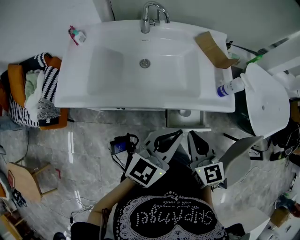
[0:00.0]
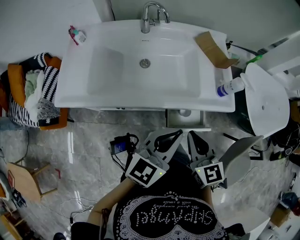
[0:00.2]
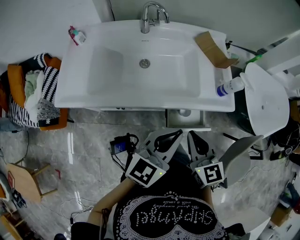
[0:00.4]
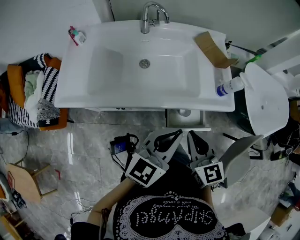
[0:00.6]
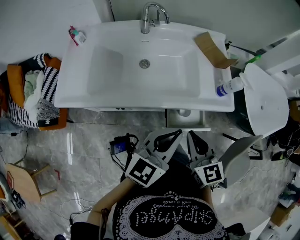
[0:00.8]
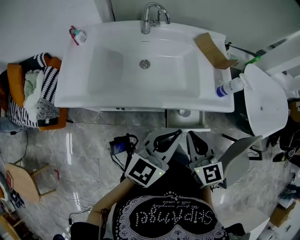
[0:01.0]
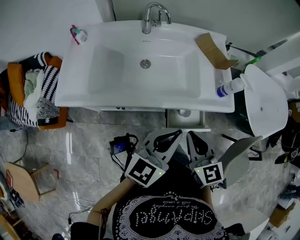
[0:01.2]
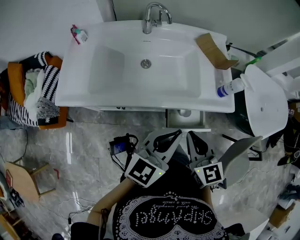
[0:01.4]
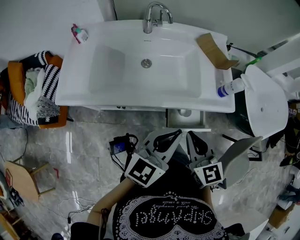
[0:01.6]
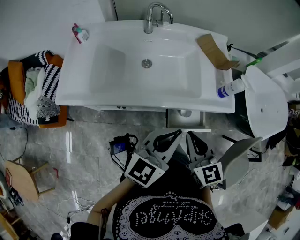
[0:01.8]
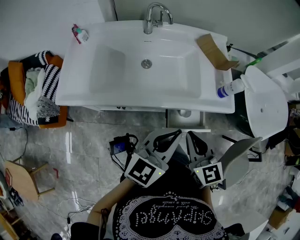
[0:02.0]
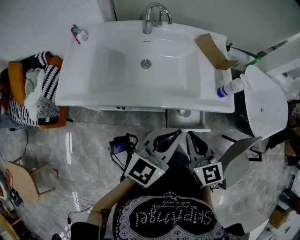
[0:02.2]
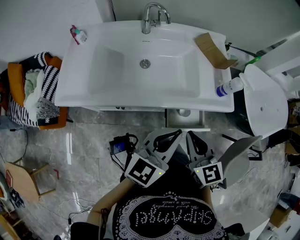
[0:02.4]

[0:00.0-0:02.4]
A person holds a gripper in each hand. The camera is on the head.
0.0 to 1.2 s: Both grippers stay about where they are.
1.2 to 2.4 s: Neither gripper changes place.

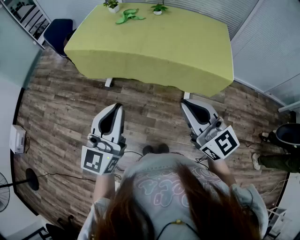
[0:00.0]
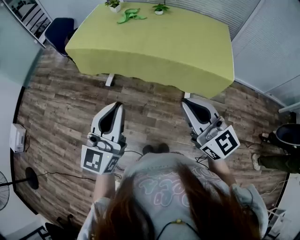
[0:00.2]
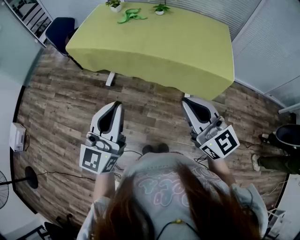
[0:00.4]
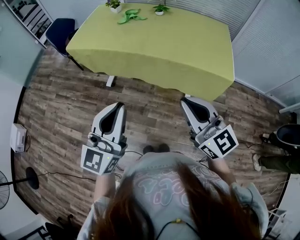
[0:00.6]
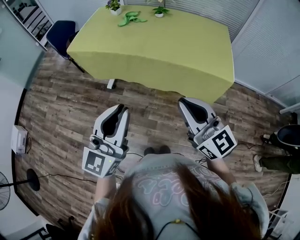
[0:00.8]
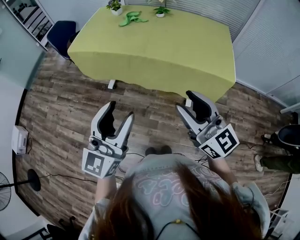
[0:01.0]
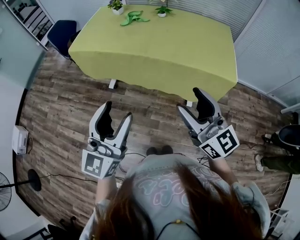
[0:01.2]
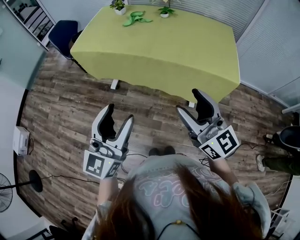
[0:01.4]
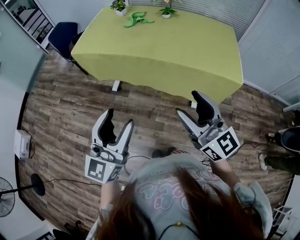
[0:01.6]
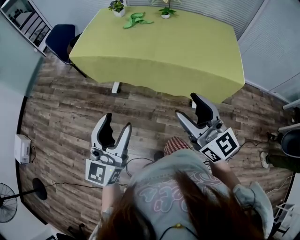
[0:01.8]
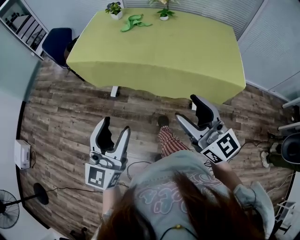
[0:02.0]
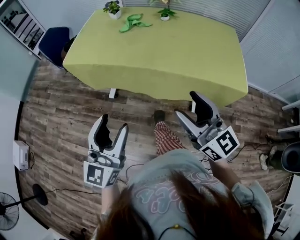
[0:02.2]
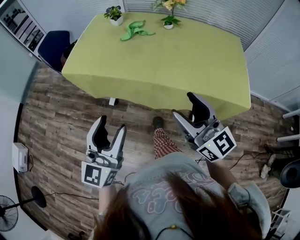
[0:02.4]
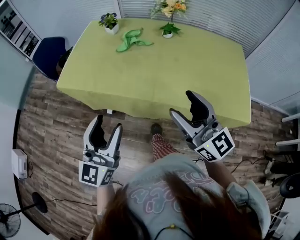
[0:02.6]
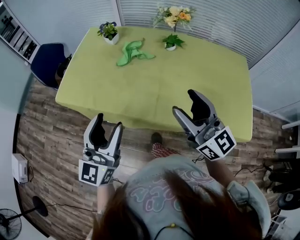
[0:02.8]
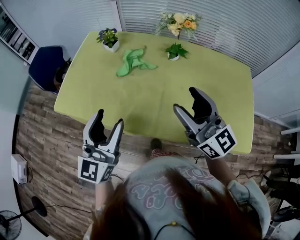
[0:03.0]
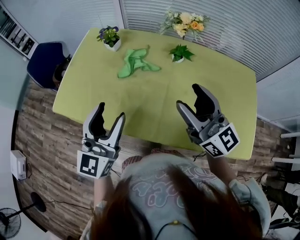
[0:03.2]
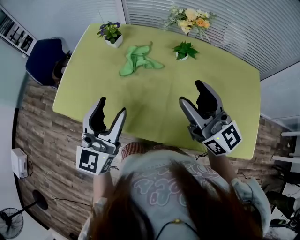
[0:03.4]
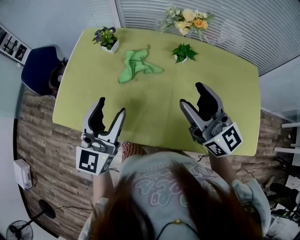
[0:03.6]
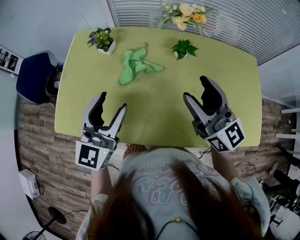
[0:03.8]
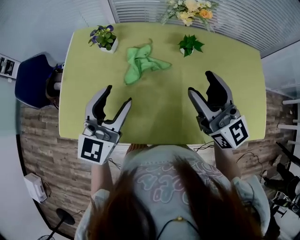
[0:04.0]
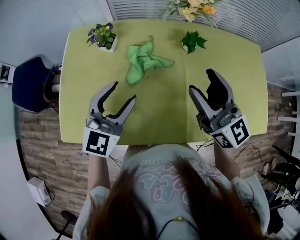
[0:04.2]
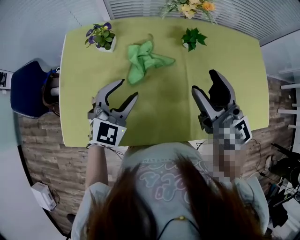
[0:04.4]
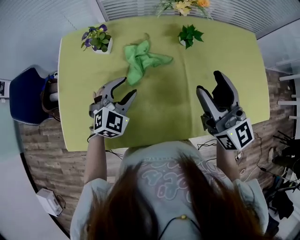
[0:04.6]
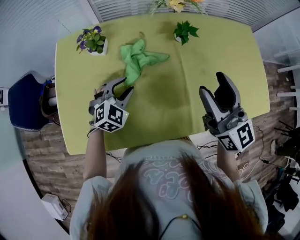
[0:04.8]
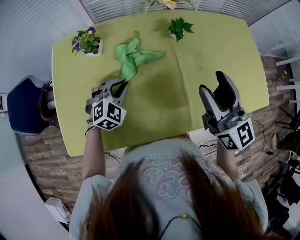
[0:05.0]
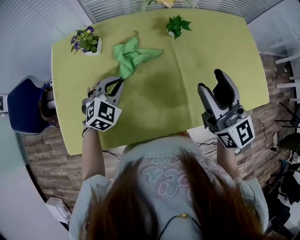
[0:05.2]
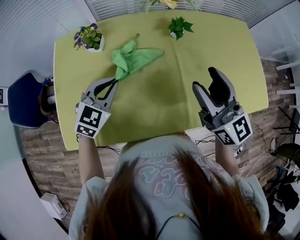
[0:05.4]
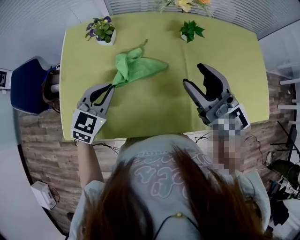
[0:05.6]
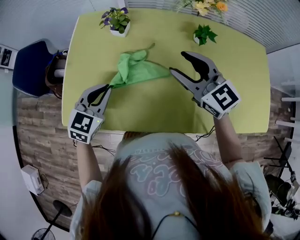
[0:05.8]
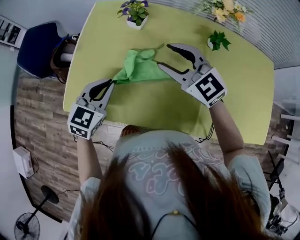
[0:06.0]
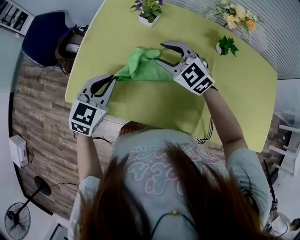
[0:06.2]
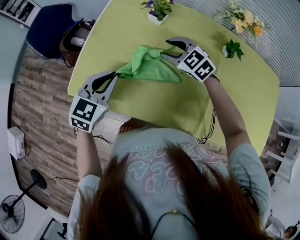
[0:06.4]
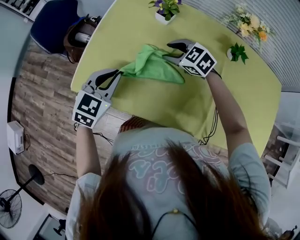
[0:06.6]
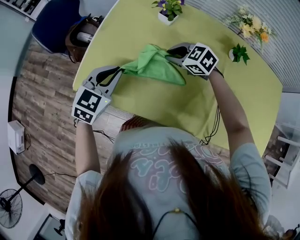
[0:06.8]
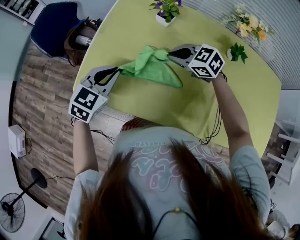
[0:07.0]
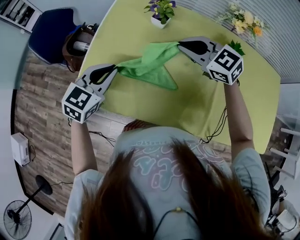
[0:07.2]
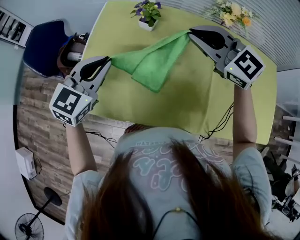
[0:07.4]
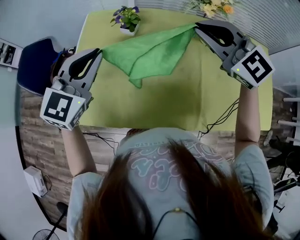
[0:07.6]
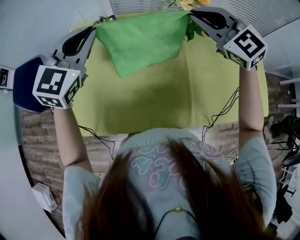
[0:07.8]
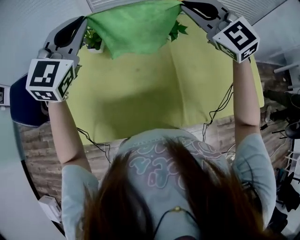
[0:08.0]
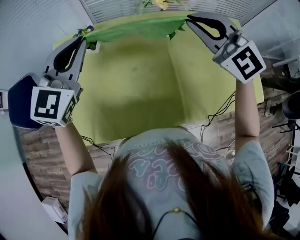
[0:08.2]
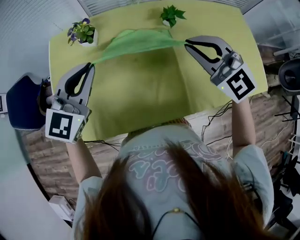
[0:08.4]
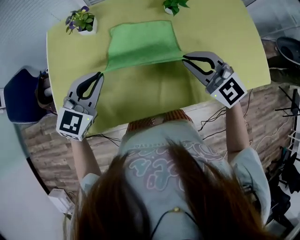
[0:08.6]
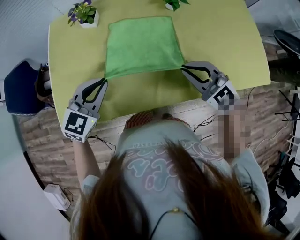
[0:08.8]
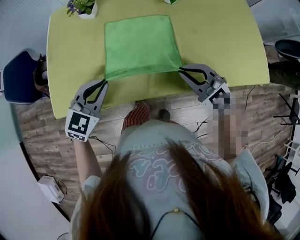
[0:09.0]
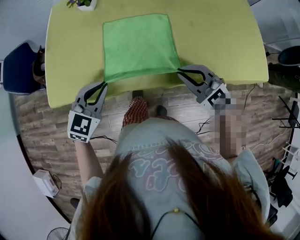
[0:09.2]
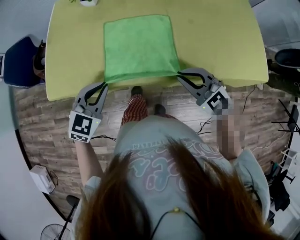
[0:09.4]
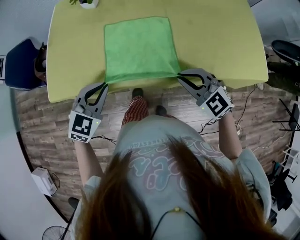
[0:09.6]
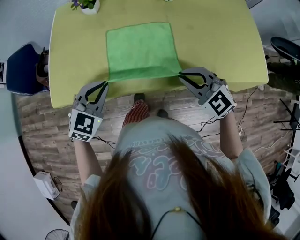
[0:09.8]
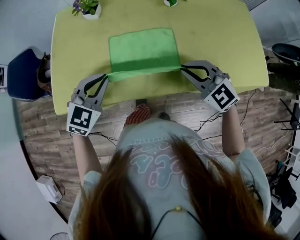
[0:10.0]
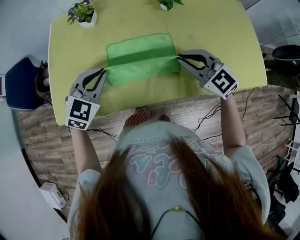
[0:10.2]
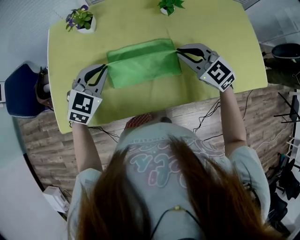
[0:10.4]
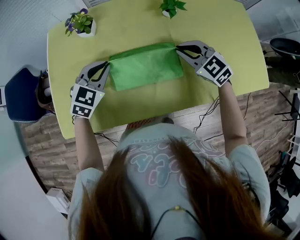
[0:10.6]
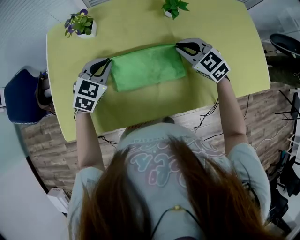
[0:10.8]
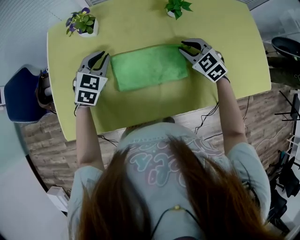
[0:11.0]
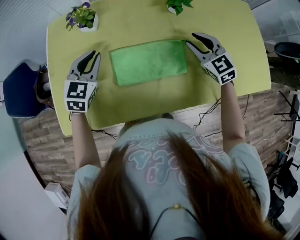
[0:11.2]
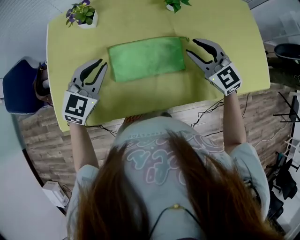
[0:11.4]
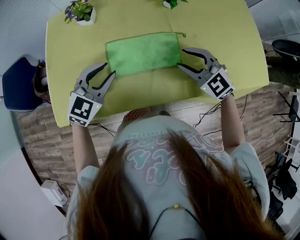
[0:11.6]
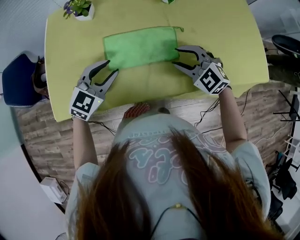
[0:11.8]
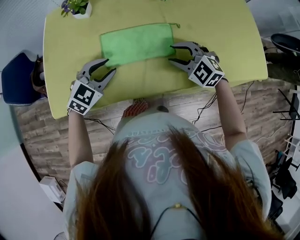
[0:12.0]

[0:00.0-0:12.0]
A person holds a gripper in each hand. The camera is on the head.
0.0 to 1.6 s: Both grippers travel together to the left, approximately 5 cm. The right gripper opens its fingers. The left gripper opens up.
1.6 to 3.0 s: The two grippers travel together, forward, approximately 40 cm.
3.0 to 4.4 s: The right gripper goes about 15 cm forward and to the left, and rotates roughly 20 degrees; the left gripper goes about 25 cm forward and downward, and rotates approximately 50 degrees.
4.4 to 6.0 s: The right gripper shifts by approximately 20 cm, and rotates approximately 50 degrees. Meanwhile the left gripper travels downward and back again, roughly 10 cm each way, changes its angle by about 30 degrees, and closes.
6.0 to 7.6 s: The left gripper shifts some 15 cm upward and forward. Meanwhile the right gripper moves upward and to the right, about 15 cm, and closes.
7.6 to 9.0 s: The right gripper travels backward, downward and to the right by some 30 cm. The left gripper is displaced downward, backward and to the right by about 25 cm, and changes its angle by roughly 20 degrees.
9.0 to 10.4 s: The grippers both shift forward by some 10 cm.
10.4 to 12.0 s: The right gripper is displaced downward and backward by about 10 cm, and opens up; the left gripper heads backward and downward, covering about 10 cm, and opens its fingers.

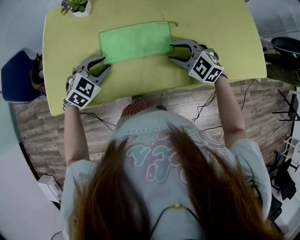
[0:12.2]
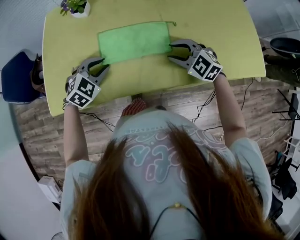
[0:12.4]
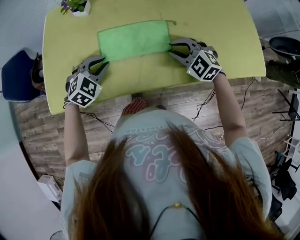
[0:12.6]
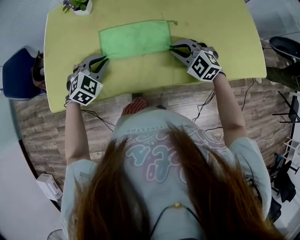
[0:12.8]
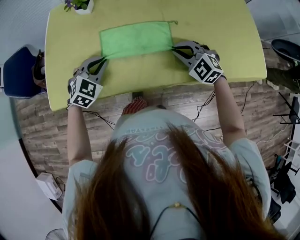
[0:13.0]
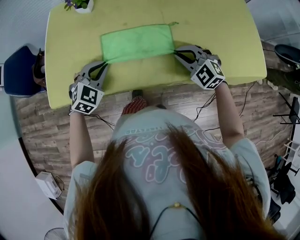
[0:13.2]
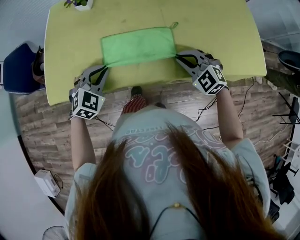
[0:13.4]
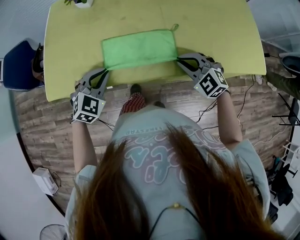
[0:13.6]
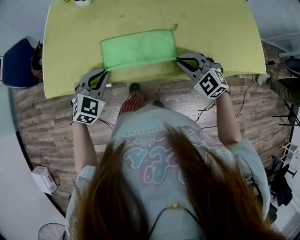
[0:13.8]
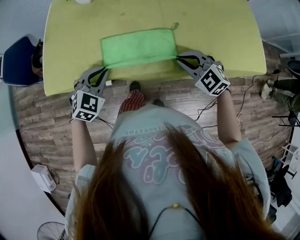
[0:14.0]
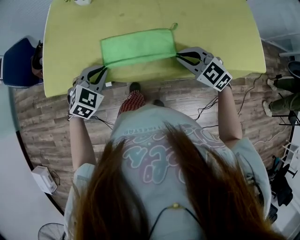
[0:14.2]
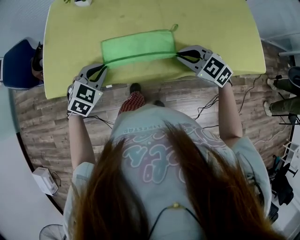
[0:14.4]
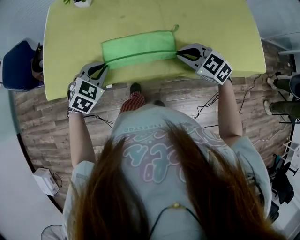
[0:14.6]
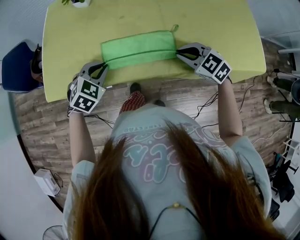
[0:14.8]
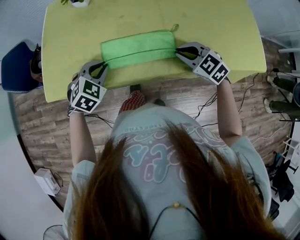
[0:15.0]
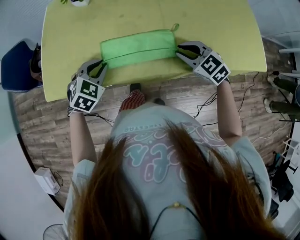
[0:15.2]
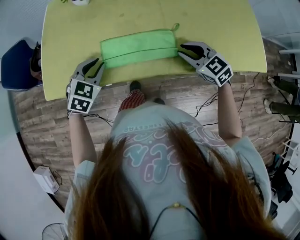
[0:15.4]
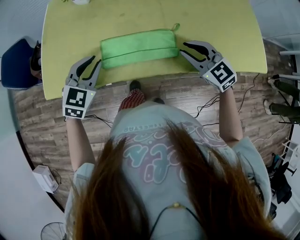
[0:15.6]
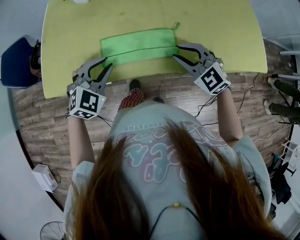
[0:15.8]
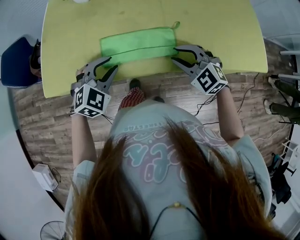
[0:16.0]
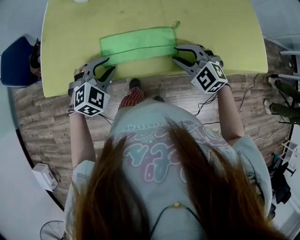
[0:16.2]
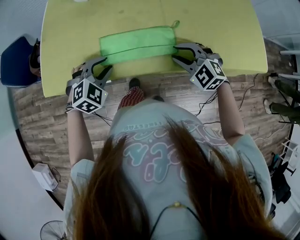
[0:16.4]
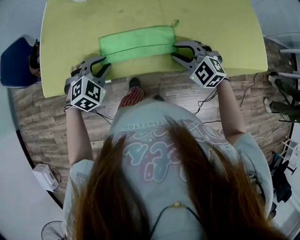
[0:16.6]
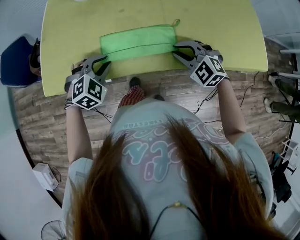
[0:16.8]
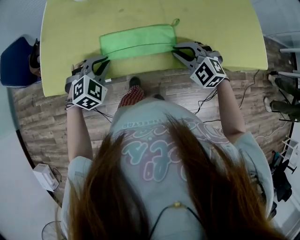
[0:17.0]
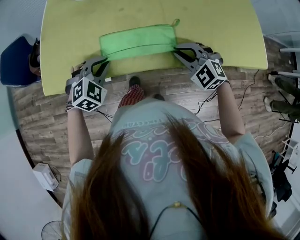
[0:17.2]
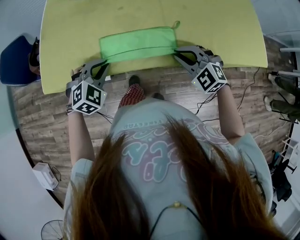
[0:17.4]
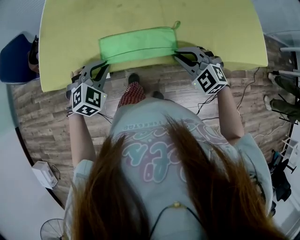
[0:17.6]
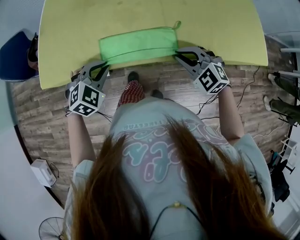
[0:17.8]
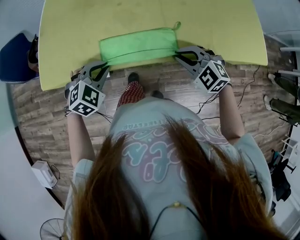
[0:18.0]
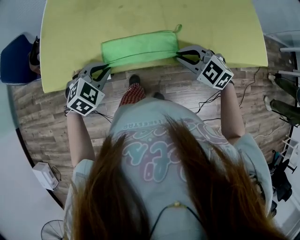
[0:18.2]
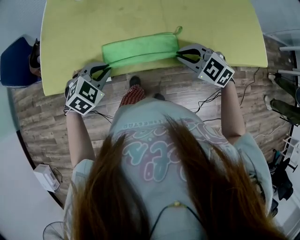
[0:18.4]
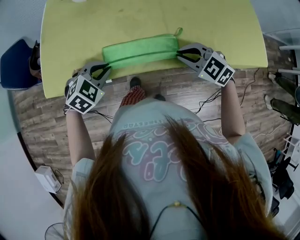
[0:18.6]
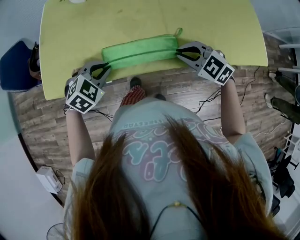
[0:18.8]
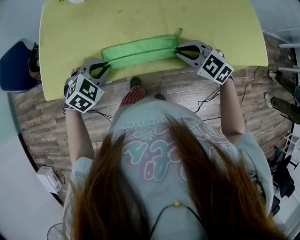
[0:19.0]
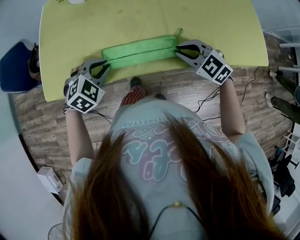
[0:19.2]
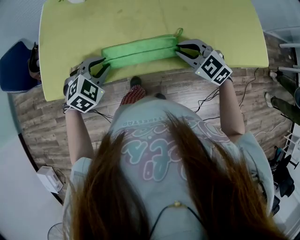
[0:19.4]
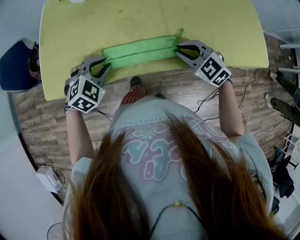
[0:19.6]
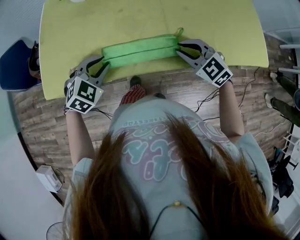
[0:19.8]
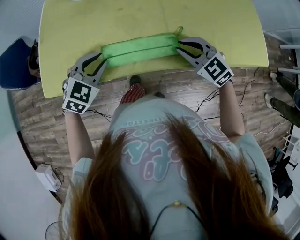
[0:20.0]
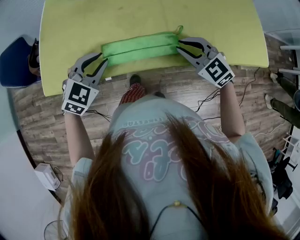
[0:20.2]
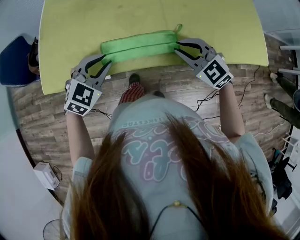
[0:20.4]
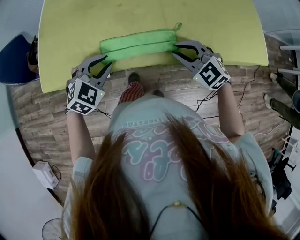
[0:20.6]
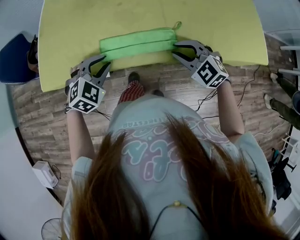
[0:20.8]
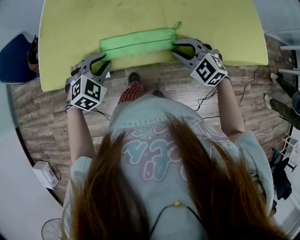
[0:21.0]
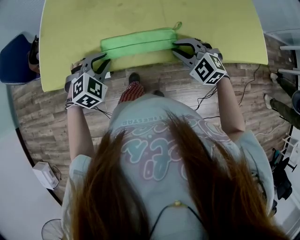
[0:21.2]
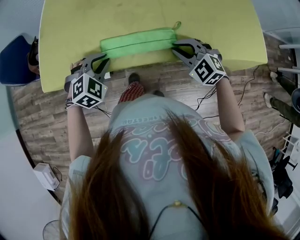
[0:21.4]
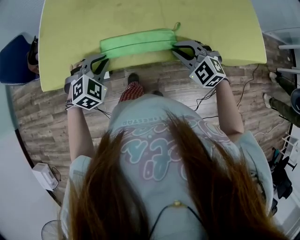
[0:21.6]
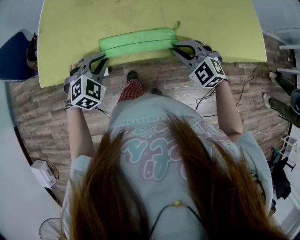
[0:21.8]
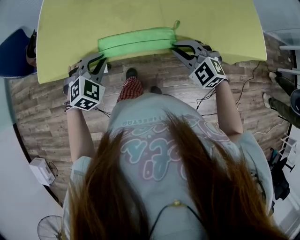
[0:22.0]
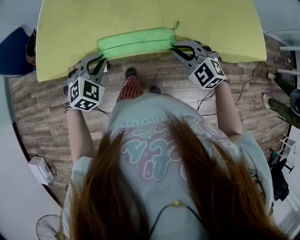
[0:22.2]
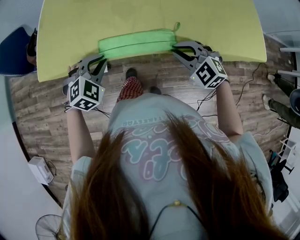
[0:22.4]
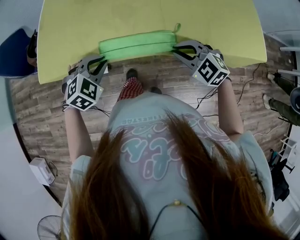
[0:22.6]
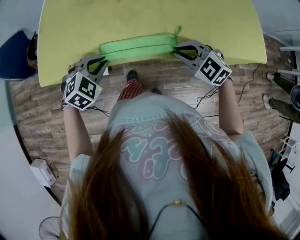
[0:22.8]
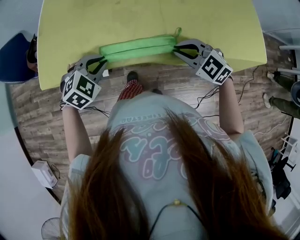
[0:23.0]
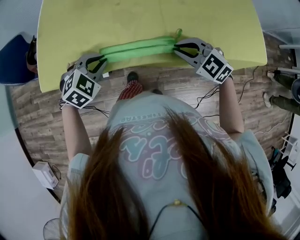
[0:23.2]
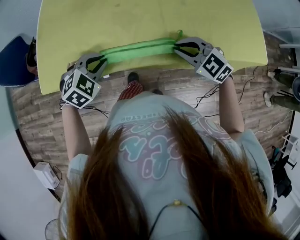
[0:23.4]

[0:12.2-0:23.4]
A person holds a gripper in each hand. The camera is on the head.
12.2 to 13.8 s: The two grippers go roughly 10 cm backward. The right gripper closes up, while the left gripper closes.
13.8 to 15.4 s: The right gripper changes its angle by approximately 20 degrees.
15.4 to 17.0 s: The left gripper turns by roughly 20 degrees. The right gripper changes its angle by roughly 30 degrees.
17.0 to 18.6 s: The grippers stay close to where they were, moving slightly.
18.6 to 20.2 s: The left gripper moves roughly 5 cm.
20.2 to 21.8 s: The right gripper shifts by some 5 cm; the left gripper shifts roughly 5 cm downward.
21.8 to 23.4 s: There are only small adjustments of the grippers.
